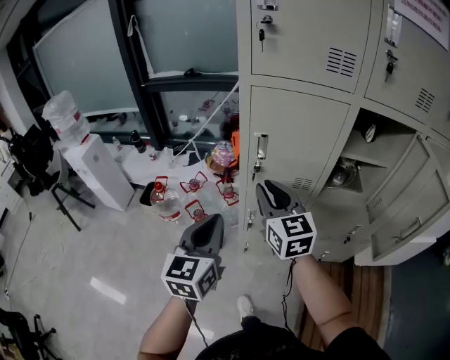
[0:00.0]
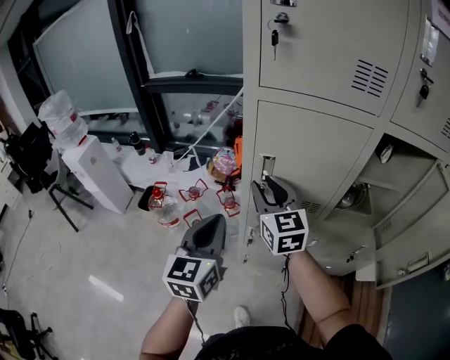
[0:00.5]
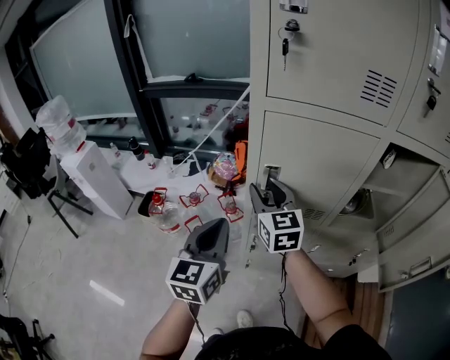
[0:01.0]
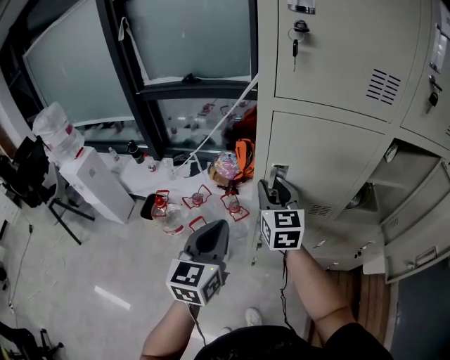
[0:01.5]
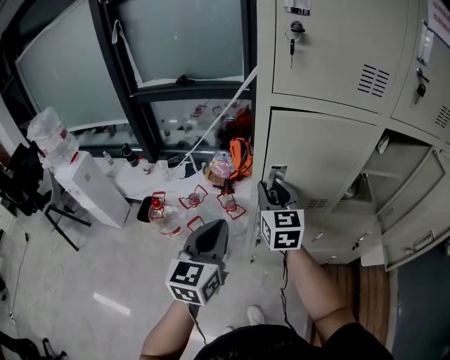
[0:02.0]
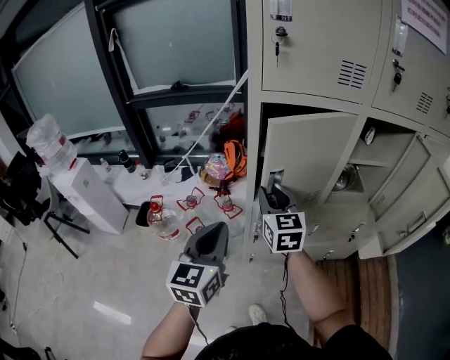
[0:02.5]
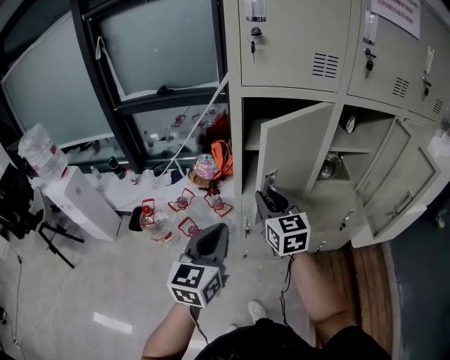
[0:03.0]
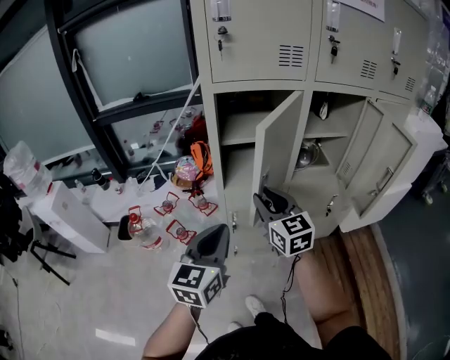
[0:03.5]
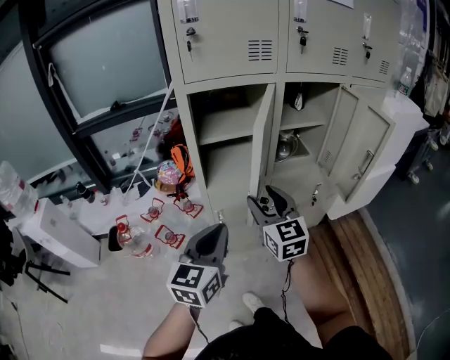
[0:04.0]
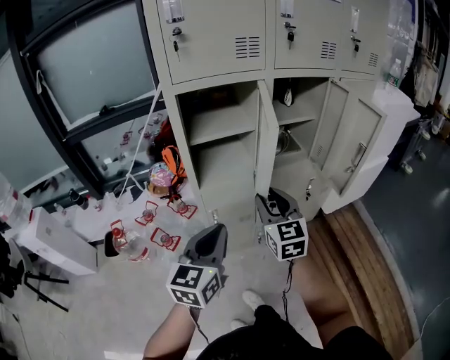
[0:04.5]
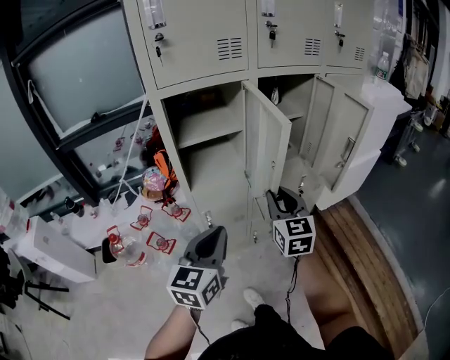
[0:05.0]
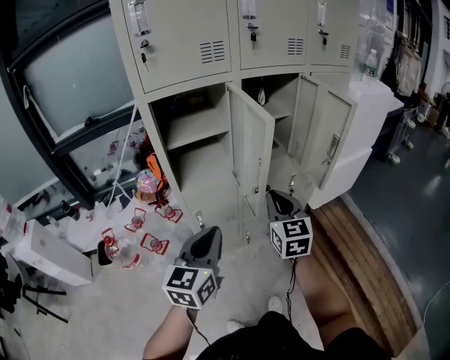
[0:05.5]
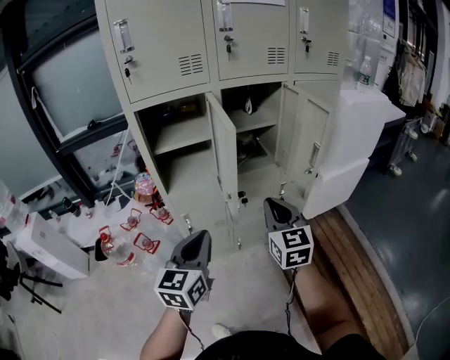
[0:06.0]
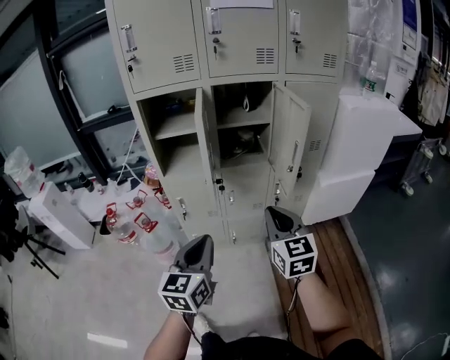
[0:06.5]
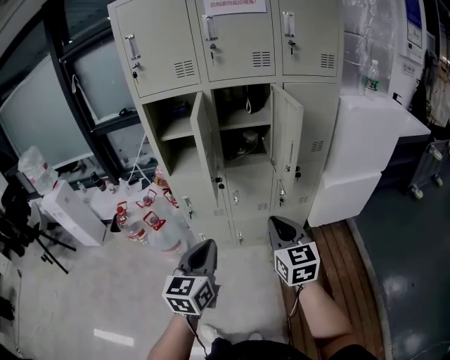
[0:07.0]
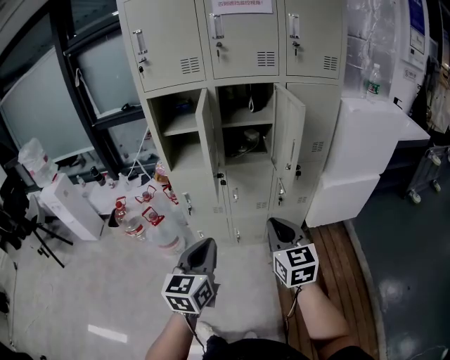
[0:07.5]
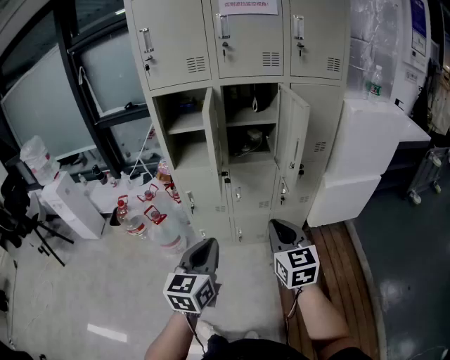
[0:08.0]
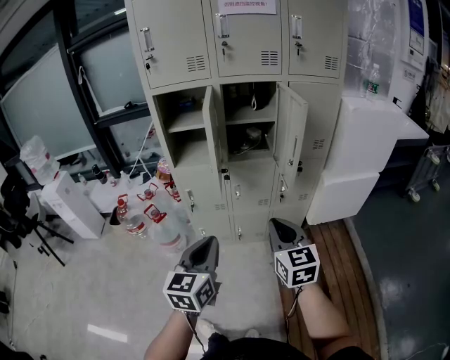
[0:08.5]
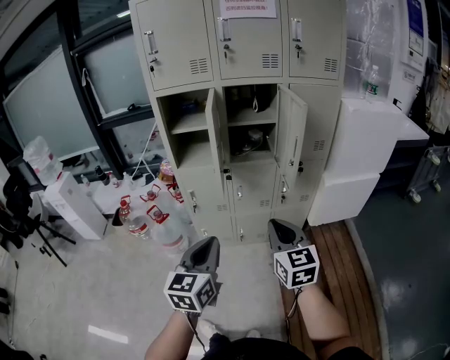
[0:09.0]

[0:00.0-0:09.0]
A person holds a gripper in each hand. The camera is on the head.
0:00.0 to 0:02.0: The grippers both shift forward by about 10 cm.
0:02.0 to 0:04.5: Both grippers move to the right and backward, some 20 cm. The right gripper opens and closes again. Meanwhile the left gripper rotates approximately 30 degrees.
0:04.5 to 0:07.0: Both grippers move to the right and backward, about 35 cm. The right gripper closes.
0:07.0 to 0:09.0: The grippers both shift backward by about 5 cm.

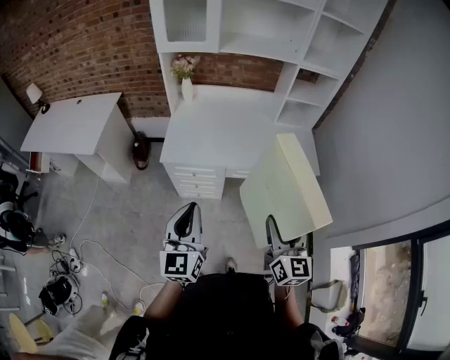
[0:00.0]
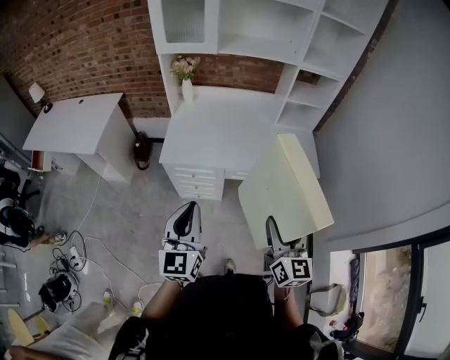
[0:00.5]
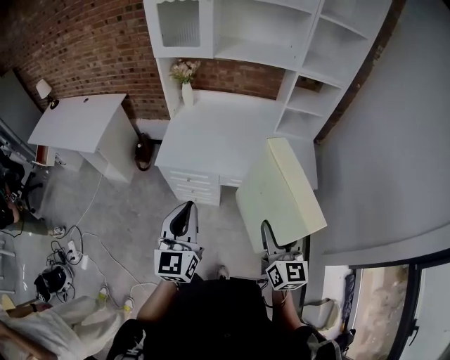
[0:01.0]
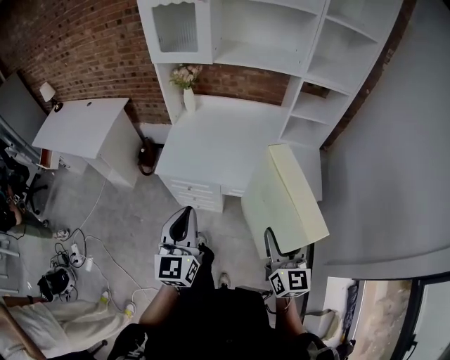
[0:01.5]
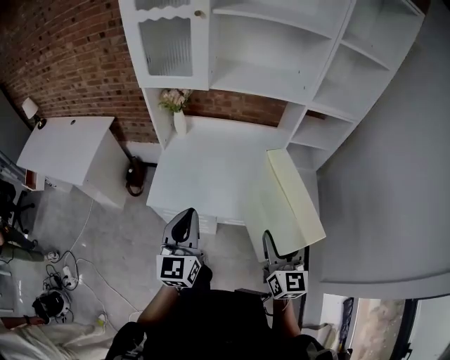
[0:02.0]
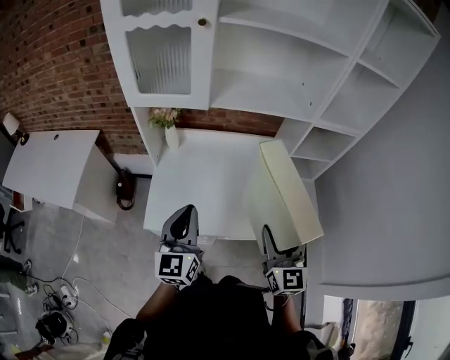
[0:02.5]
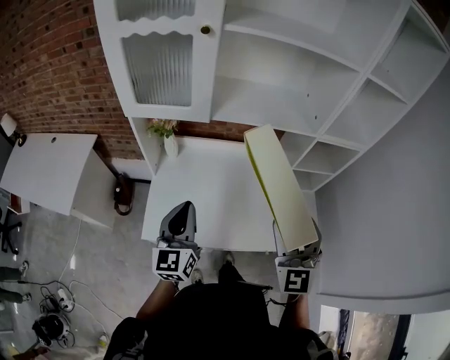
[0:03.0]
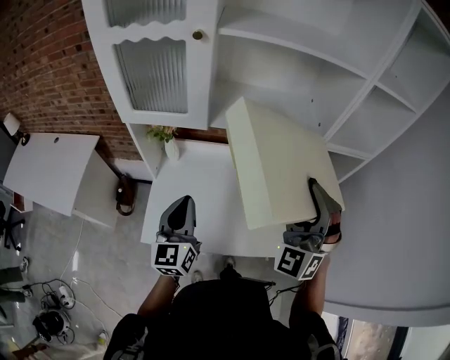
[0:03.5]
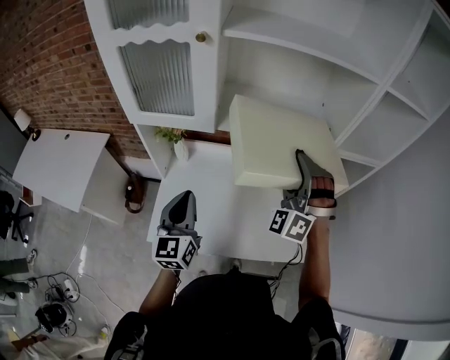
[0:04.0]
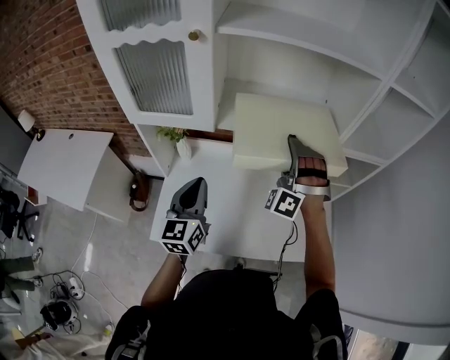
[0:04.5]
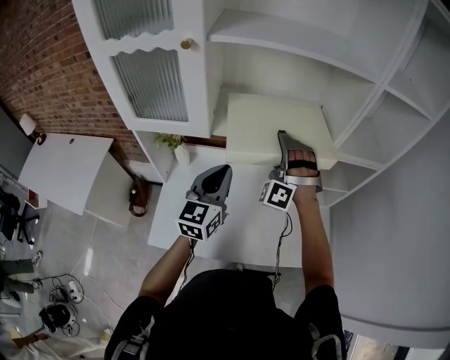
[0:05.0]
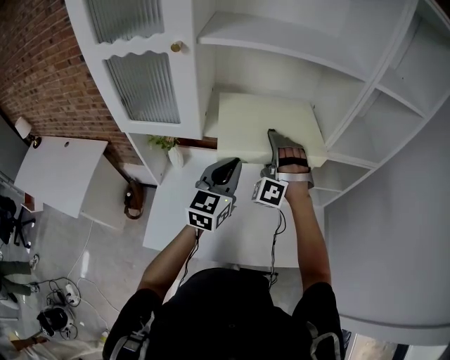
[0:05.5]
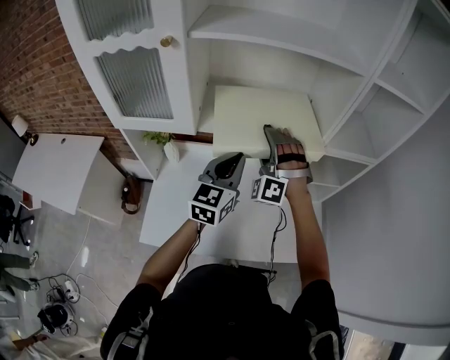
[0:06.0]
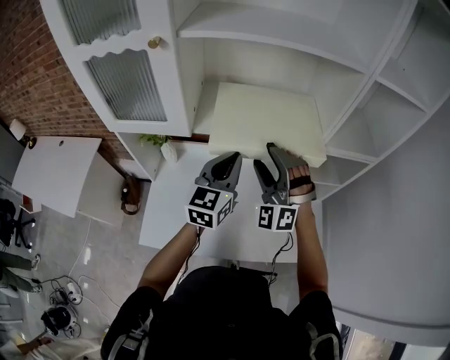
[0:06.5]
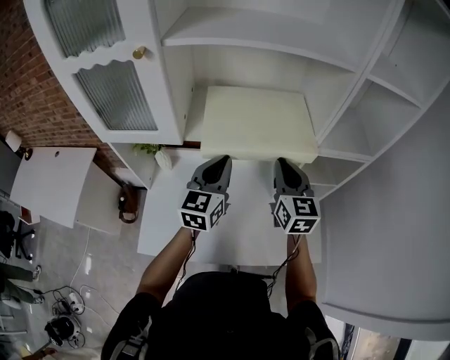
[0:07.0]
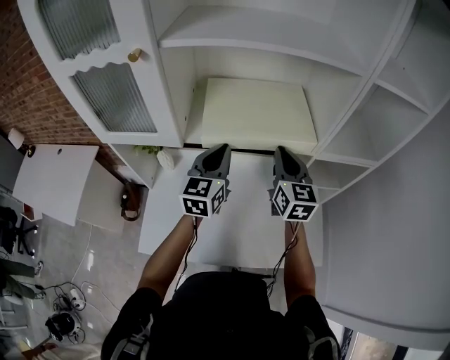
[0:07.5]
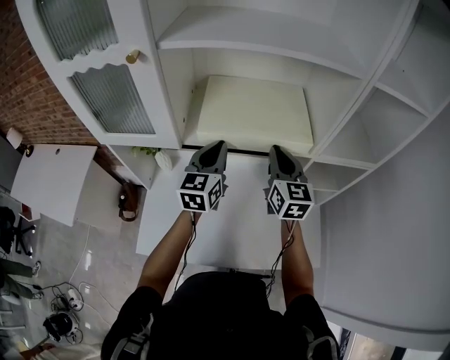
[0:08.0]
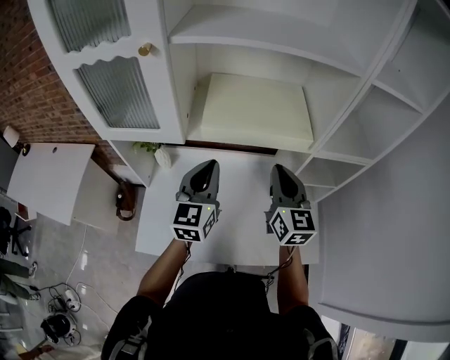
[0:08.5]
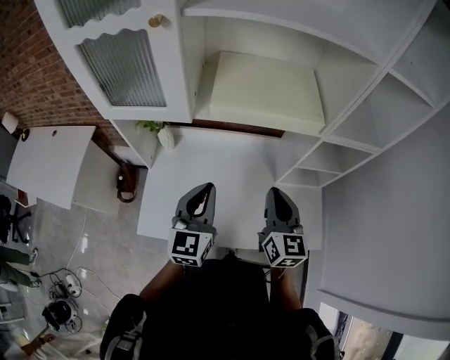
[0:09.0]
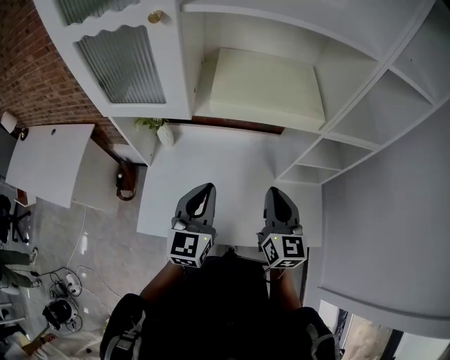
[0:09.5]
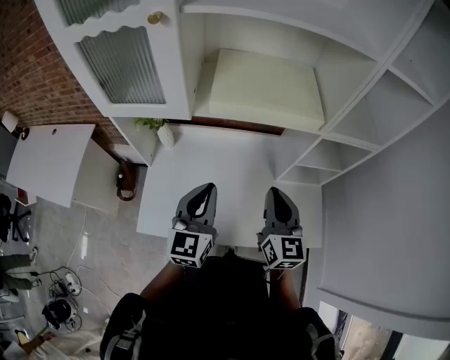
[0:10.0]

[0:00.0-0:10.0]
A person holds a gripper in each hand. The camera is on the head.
0:00.0 to 0:02.0: Both grippers move forward, about 25 cm.
0:02.0 to 0:04.0: The two grippers go about 30 cm forward. The right gripper twists some 80 degrees counterclockwise, seen from behind.
0:04.0 to 0:06.0: The right gripper travels forward and downward by approximately 10 cm, while the left gripper goes some 20 cm to the right and forward, and swivels approximately 20 degrees.
0:06.0 to 0:08.0: The left gripper heads forward, covering approximately 10 cm, while the right gripper shifts some 10 cm to the right, rotates around the line of its fingers by approximately 90 degrees, clockwise from behind, and closes up.
0:08.0 to 0:10.0: The grippers both shift backward by approximately 20 cm.

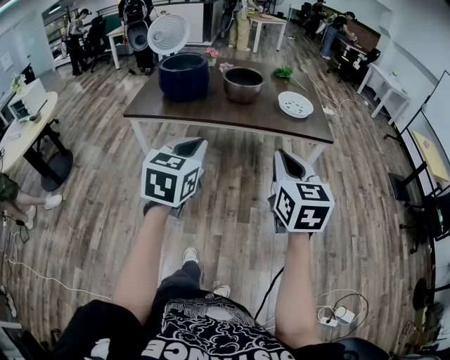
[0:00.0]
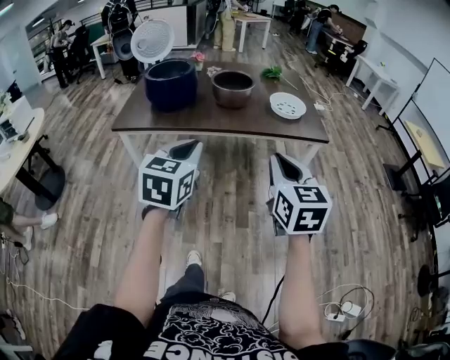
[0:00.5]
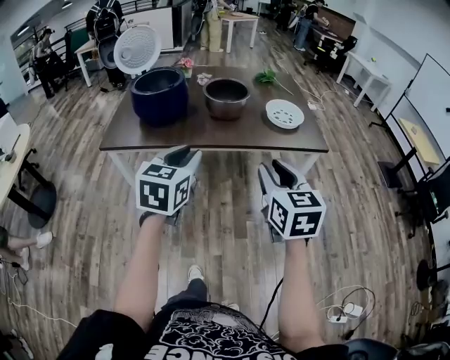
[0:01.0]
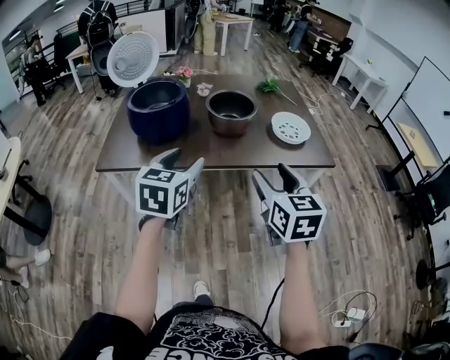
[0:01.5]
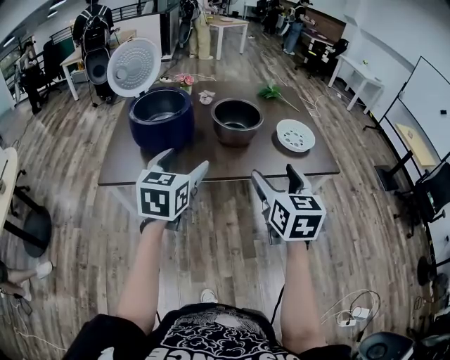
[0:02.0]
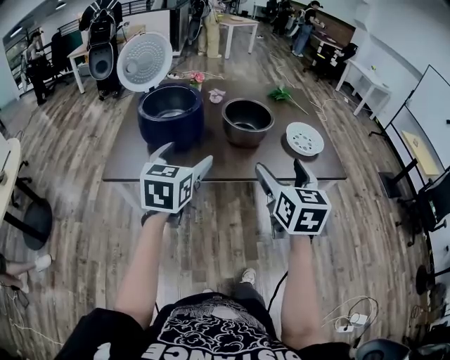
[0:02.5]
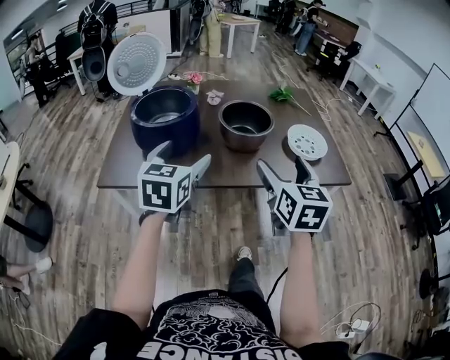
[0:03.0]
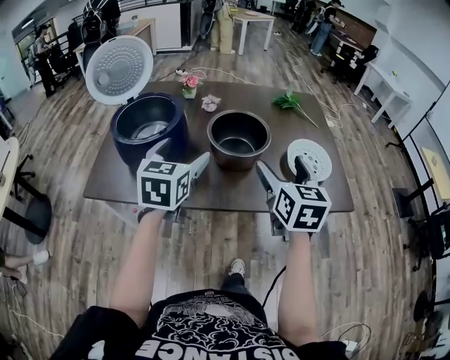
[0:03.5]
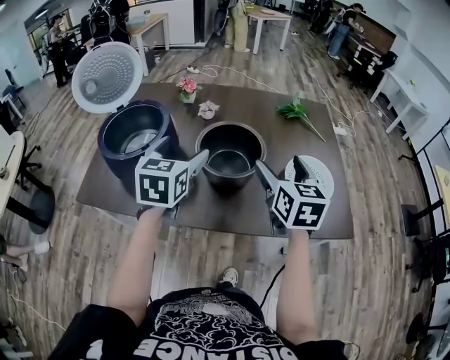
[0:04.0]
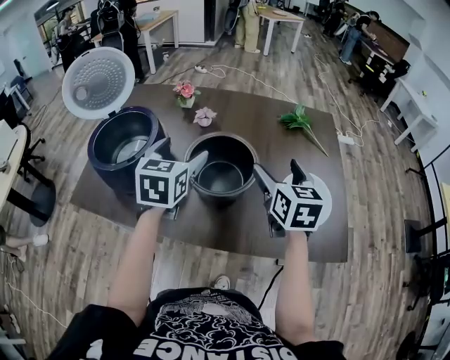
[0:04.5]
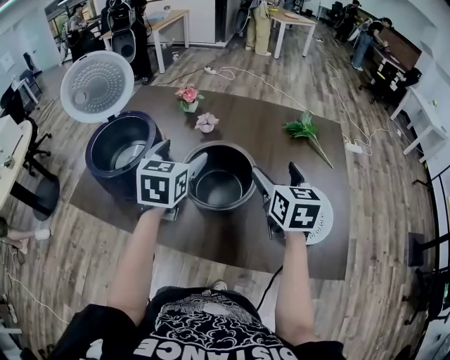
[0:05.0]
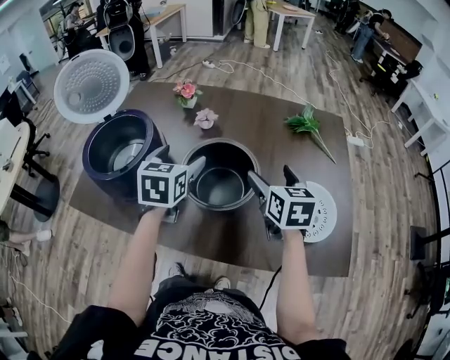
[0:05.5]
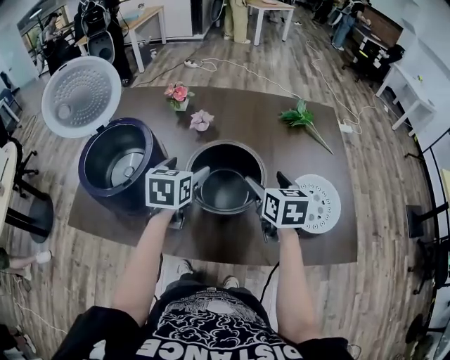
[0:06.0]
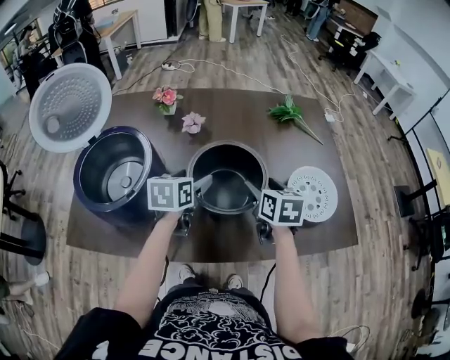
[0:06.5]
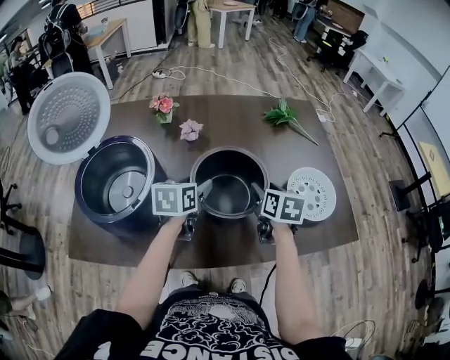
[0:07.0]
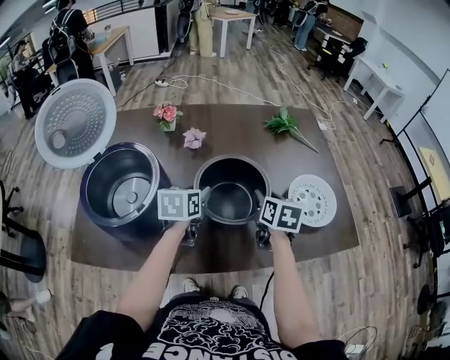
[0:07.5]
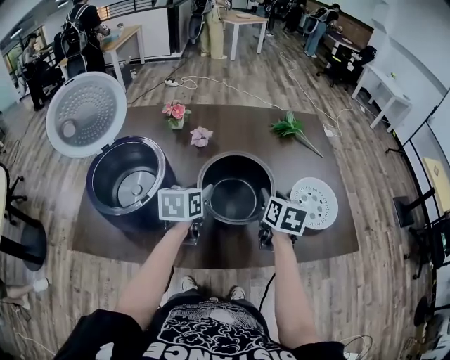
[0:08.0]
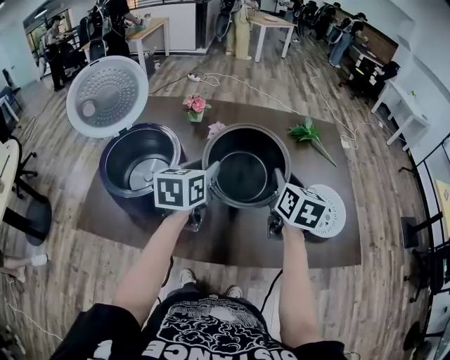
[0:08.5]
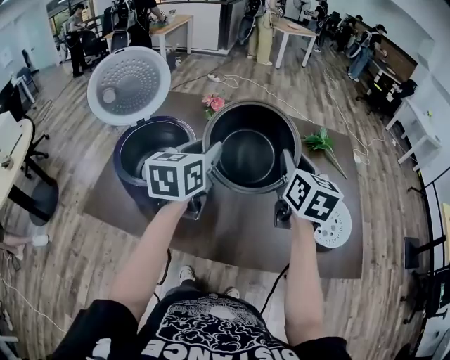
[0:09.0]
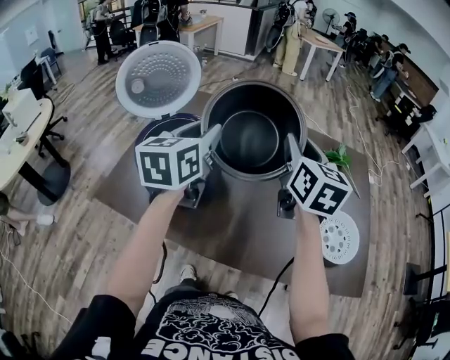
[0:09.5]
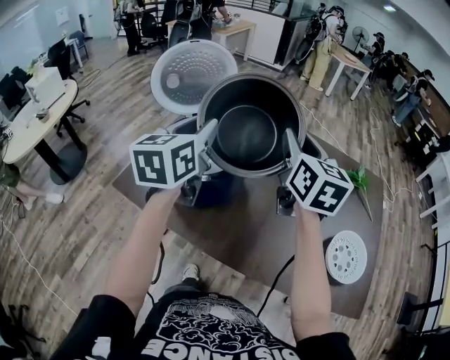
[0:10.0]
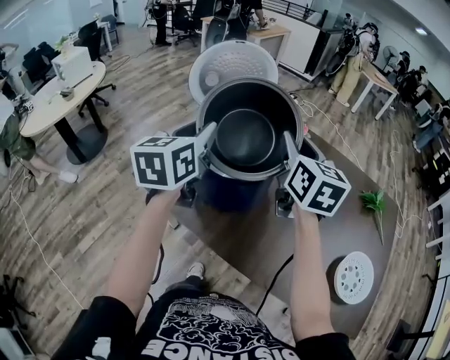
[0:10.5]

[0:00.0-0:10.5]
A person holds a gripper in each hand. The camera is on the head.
0:00.0 to 0:02.0: Both grippers travel together forward and to the left, approximately 30 cm. The left gripper opens its fingers. The right gripper opens up.
0:02.0 to 0:04.0: The grippers both shift forward by roughly 30 cm.
0:04.0 to 0:06.5: Both grippers travel together downward and forward, some 15 cm. The right gripper changes its angle by approximately 20 degrees. Meanwhile the left gripper turns by approximately 30 degrees.
0:06.5 to 0:08.5: The two grippers go approximately 10 cm upward. The right gripper closes. The left gripper closes its fingers.
0:08.5 to 0:10.5: The right gripper moves about 35 cm, and changes its angle by some 40 degrees. The left gripper moves roughly 30 cm, and turns by some 40 degrees.
